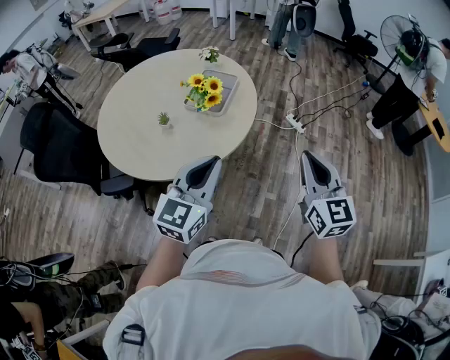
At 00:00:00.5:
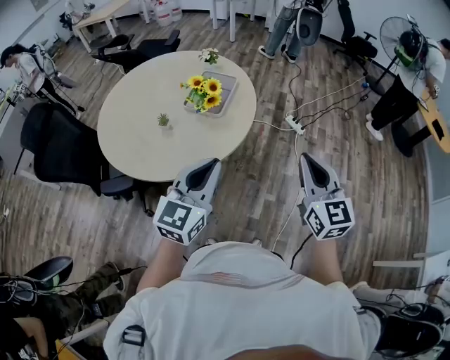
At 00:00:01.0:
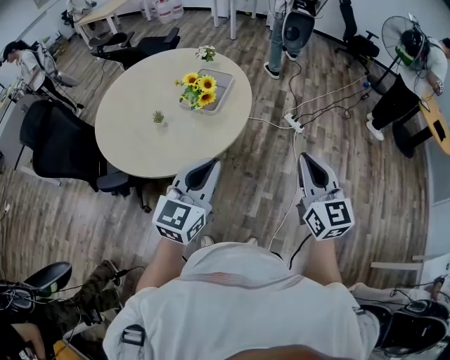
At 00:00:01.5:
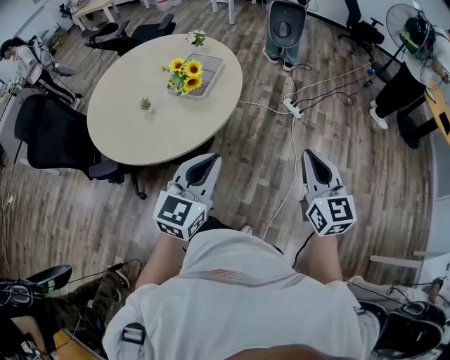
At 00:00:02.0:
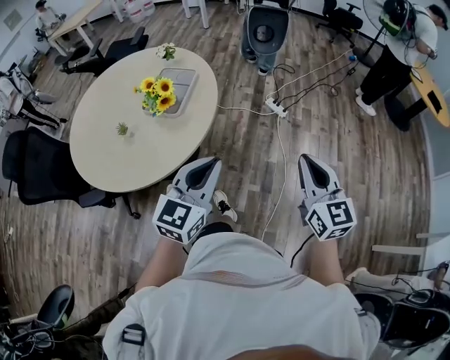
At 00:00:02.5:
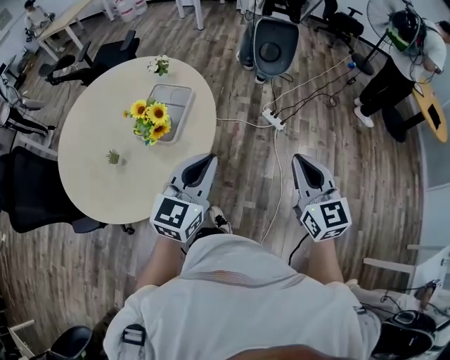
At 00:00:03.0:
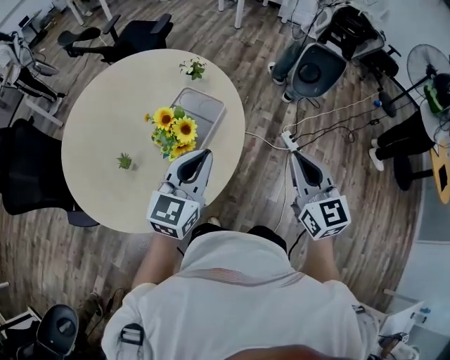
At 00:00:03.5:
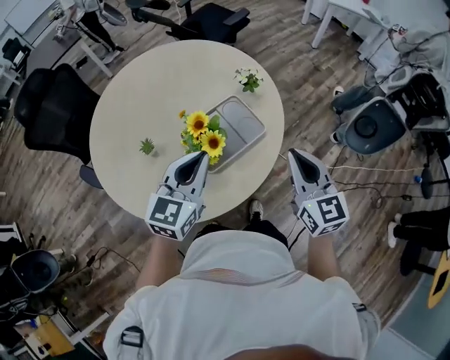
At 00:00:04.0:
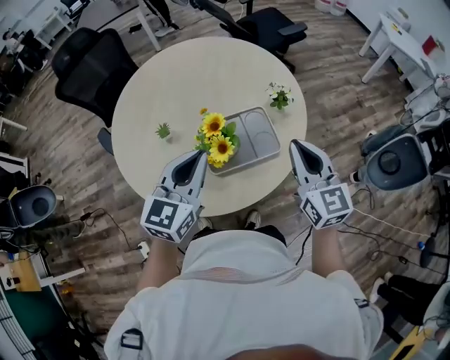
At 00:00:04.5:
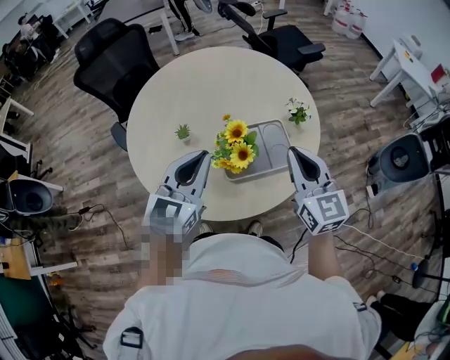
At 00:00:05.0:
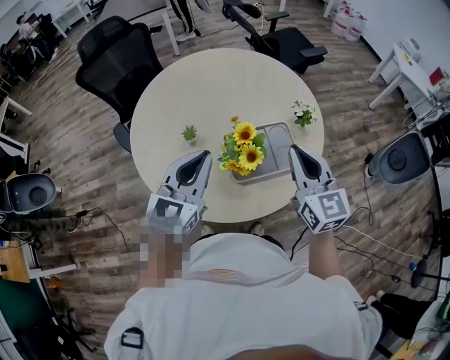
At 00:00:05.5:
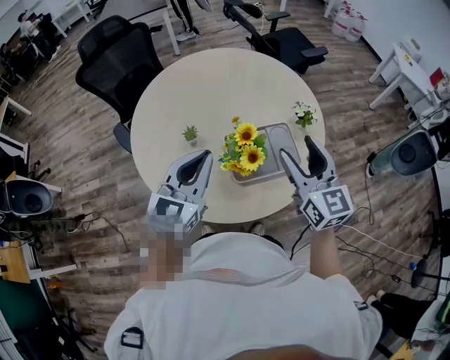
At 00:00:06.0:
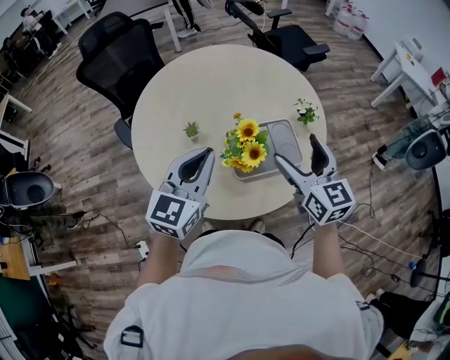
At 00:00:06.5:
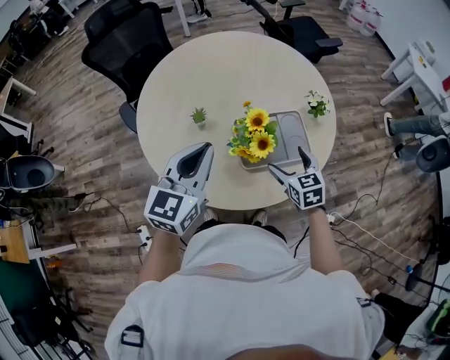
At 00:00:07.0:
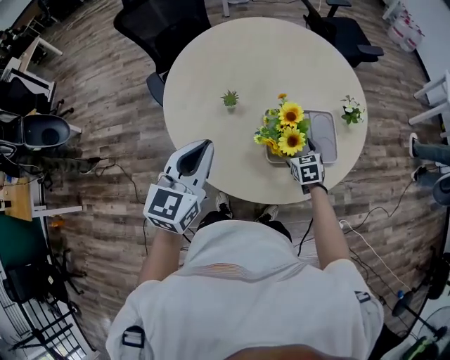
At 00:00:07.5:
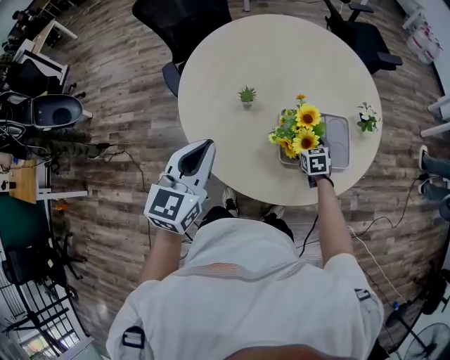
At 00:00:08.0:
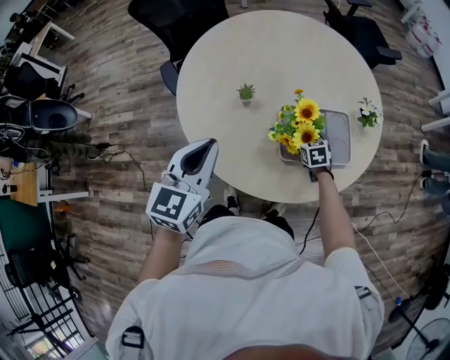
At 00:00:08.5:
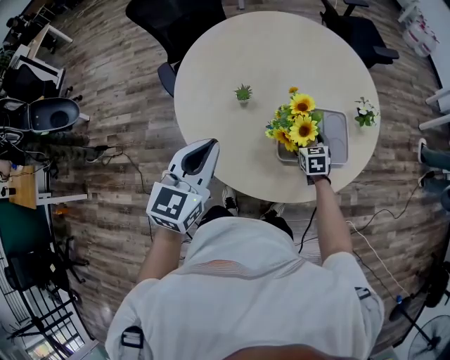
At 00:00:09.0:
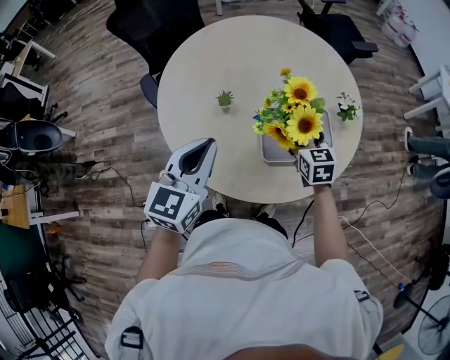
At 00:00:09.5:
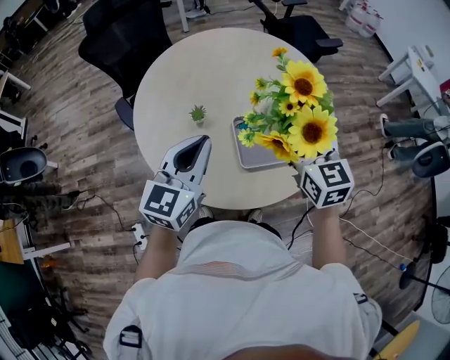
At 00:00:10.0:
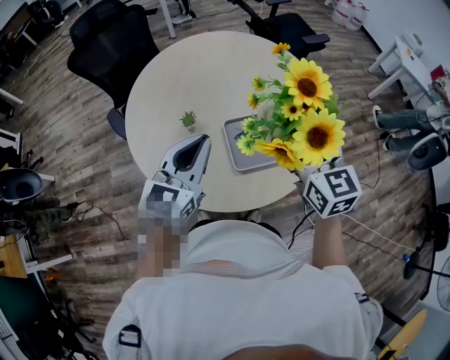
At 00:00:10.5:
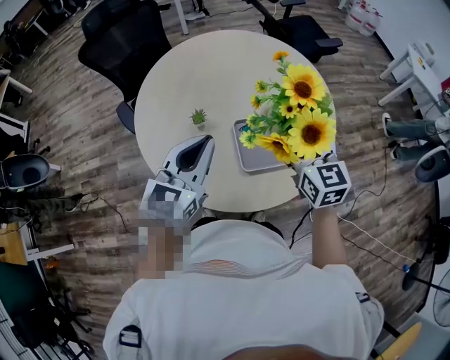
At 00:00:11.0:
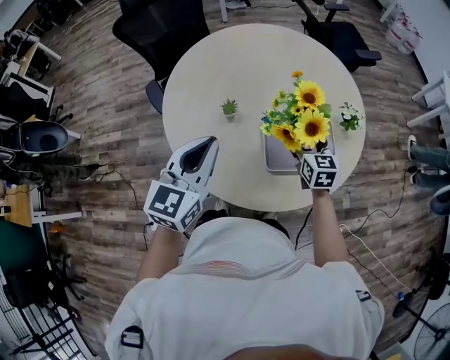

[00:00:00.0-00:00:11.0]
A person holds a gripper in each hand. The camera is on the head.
00:00:00.0 to 00:00:02.0: The left gripper moves to the right and forward, roughly 20 cm, while the right gripper is displaced to the right by roughly 20 cm.
00:00:02.0 to 00:00:03.5: The pair of grippers is taken some 50 cm. The left gripper rotates some 40 degrees. Meanwhile the right gripper turns by approximately 40 degrees.
00:00:03.5 to 00:00:05.5: The right gripper shifts approximately 15 cm forward and to the left, swivels approximately 20 degrees, and opens. The left gripper shifts about 10 cm to the left and upward, and changes its angle by roughly 20 degrees.
00:00:05.5 to 00:00:07.5: The right gripper travels downward by some 40 cm, angles its fingers downward, by roughly 50 degrees, and opens up. The left gripper heads to the left, covering roughly 10 cm, and swivels some 20 degrees.
00:00:07.5 to 00:00:09.0: The right gripper goes roughly 20 cm upward.
00:00:09.0 to 00:00:11.0: The right gripper reaches roughly 20 cm upward, then returns. The left gripper reaches roughly 10 cm to the right, then returns.

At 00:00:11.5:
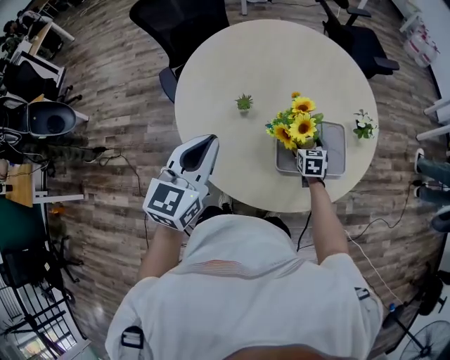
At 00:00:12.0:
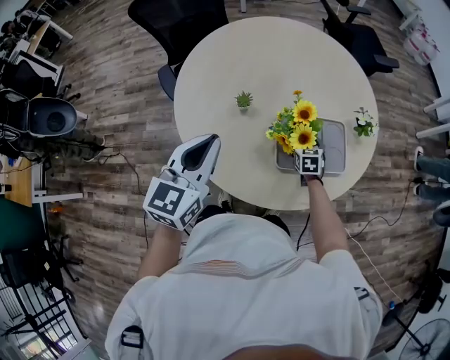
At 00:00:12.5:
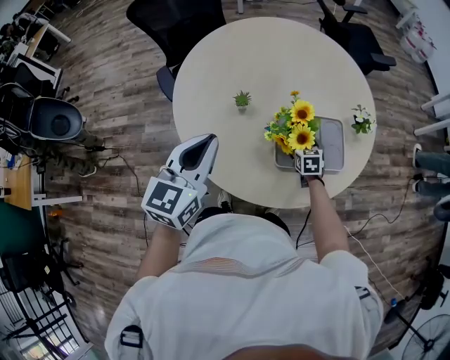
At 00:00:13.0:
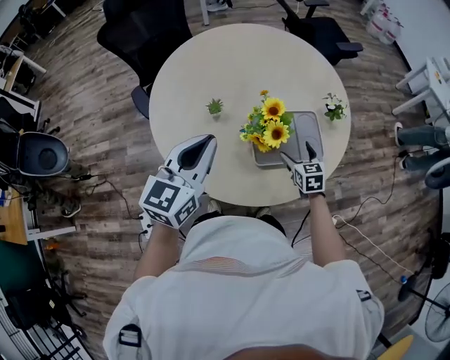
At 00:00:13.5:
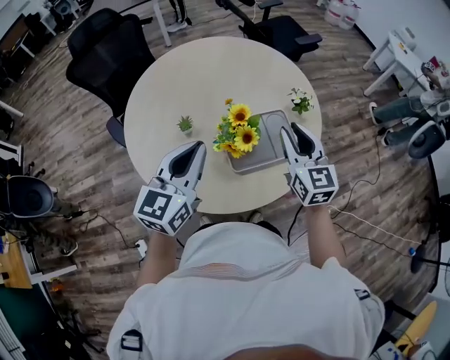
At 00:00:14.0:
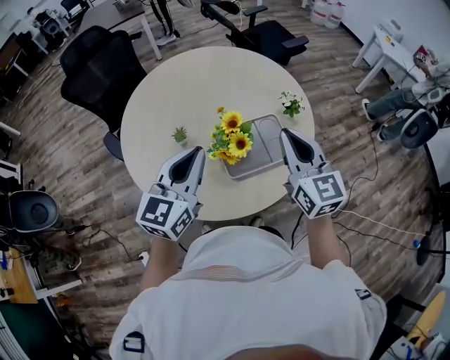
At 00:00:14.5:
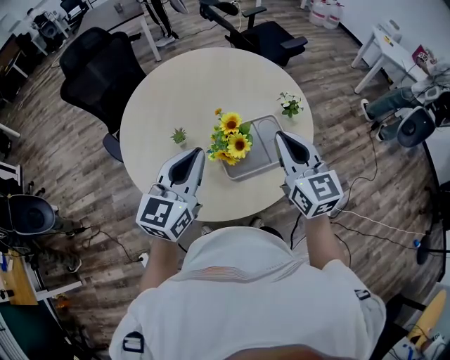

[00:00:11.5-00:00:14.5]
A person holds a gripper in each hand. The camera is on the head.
00:00:11.5 to 00:00:13.0: The right gripper shifts roughly 10 cm backward, upward and to the right, while the left gripper goes approximately 5 cm to the right.
00:00:13.0 to 00:00:14.5: The right gripper heads upward, covering approximately 30 cm, tips its fingers upward by some 30 degrees, and closes. Meanwhile the left gripper shifts some 5 cm to the right.

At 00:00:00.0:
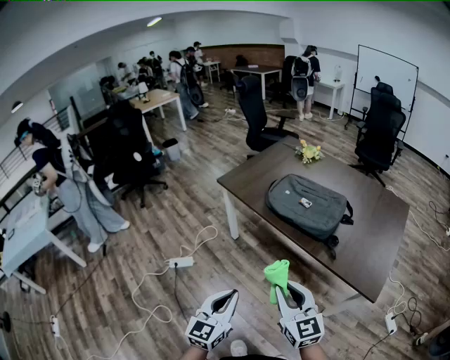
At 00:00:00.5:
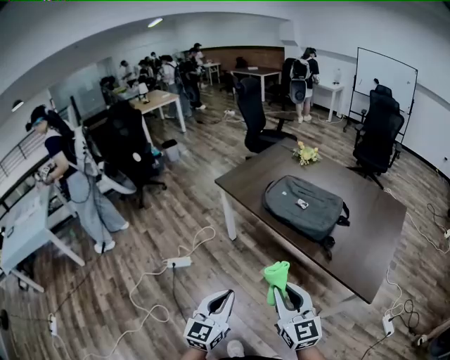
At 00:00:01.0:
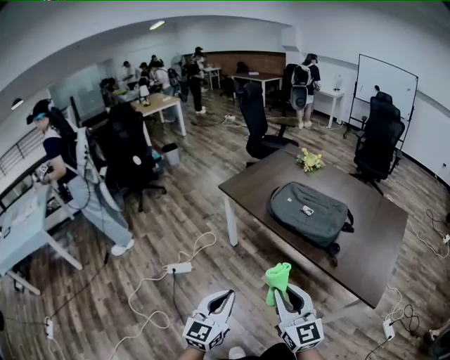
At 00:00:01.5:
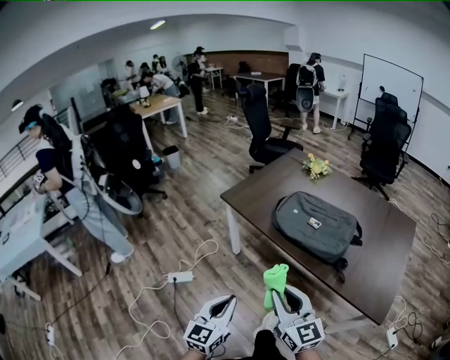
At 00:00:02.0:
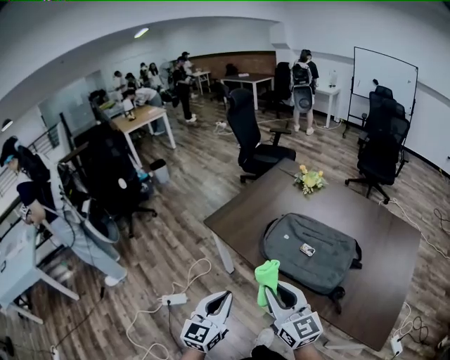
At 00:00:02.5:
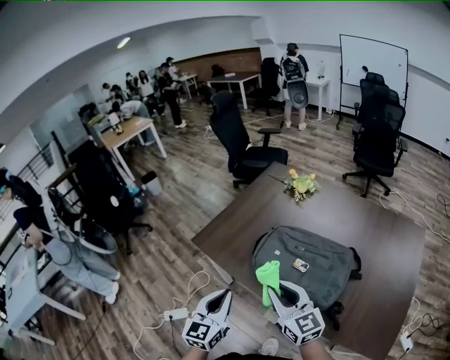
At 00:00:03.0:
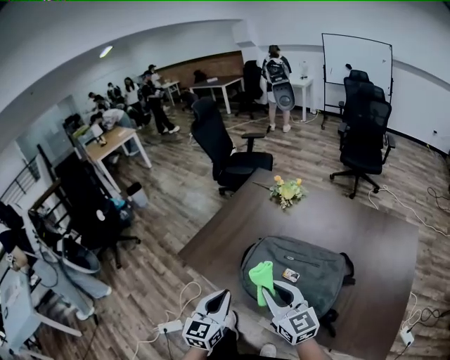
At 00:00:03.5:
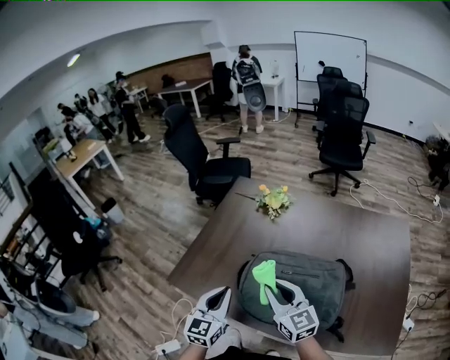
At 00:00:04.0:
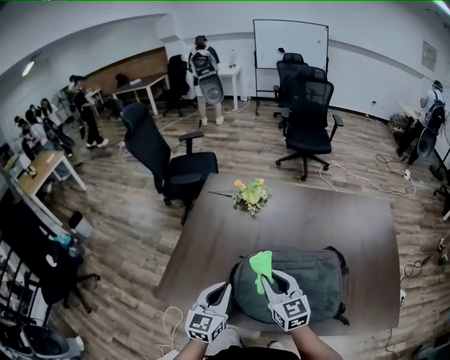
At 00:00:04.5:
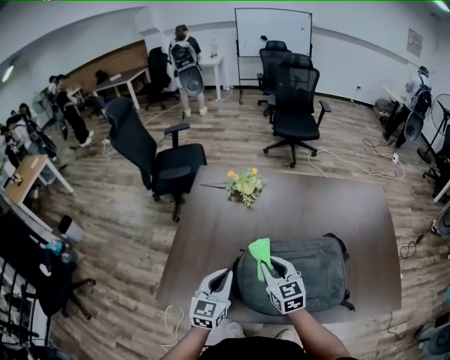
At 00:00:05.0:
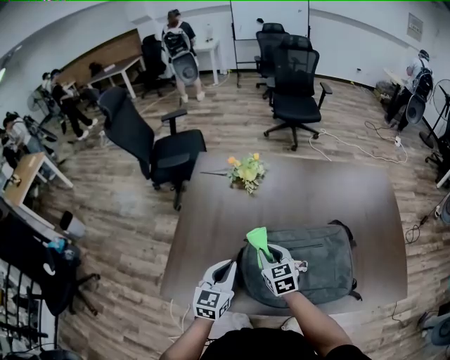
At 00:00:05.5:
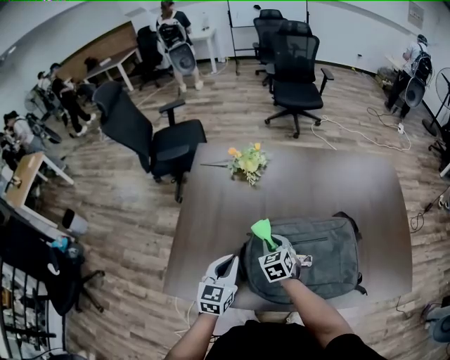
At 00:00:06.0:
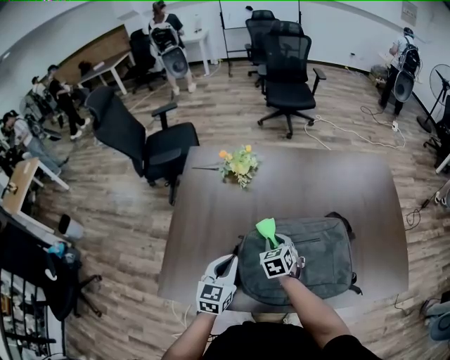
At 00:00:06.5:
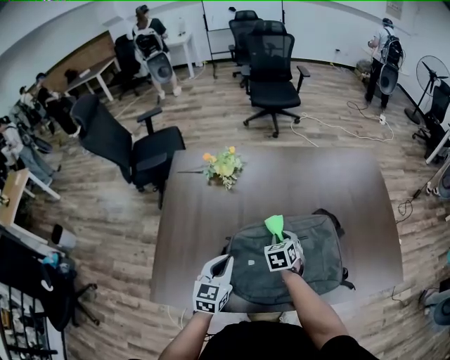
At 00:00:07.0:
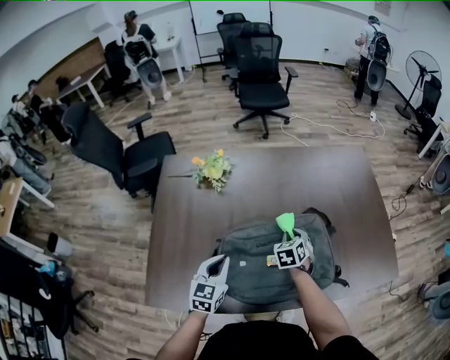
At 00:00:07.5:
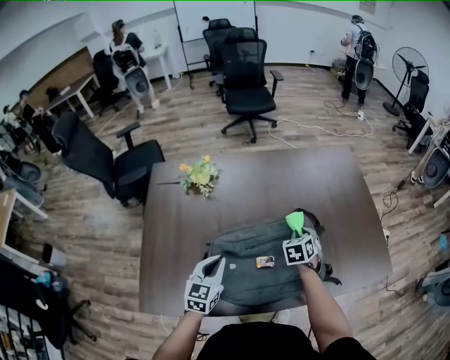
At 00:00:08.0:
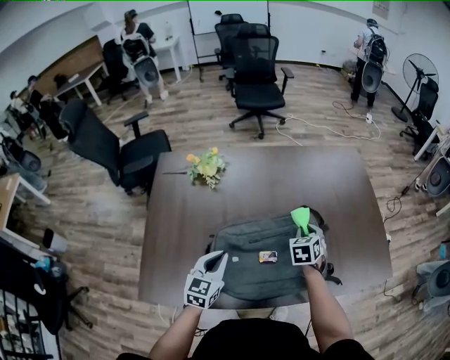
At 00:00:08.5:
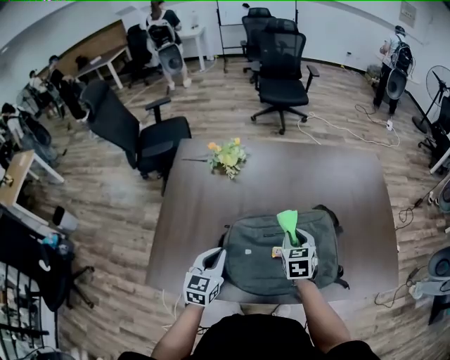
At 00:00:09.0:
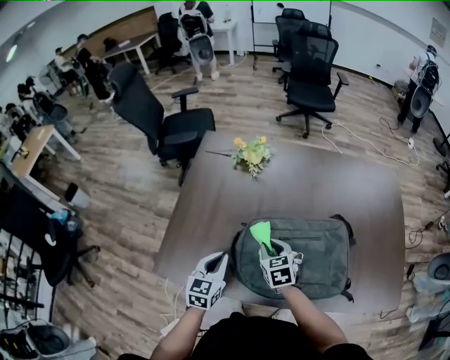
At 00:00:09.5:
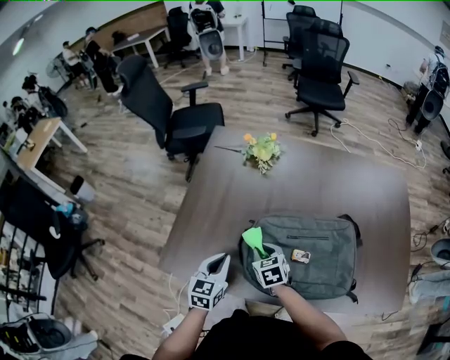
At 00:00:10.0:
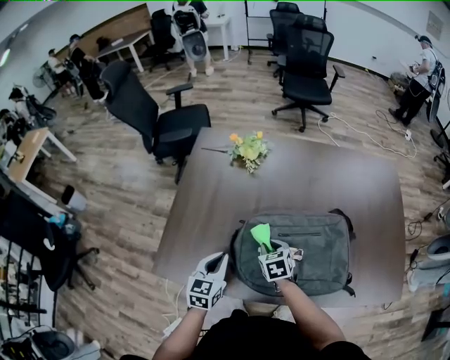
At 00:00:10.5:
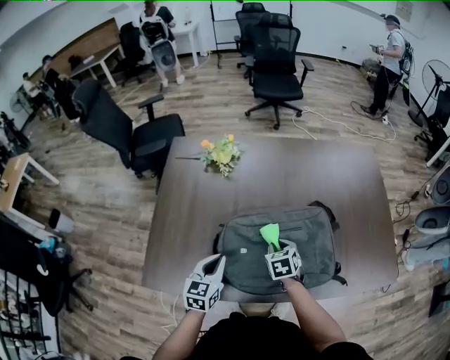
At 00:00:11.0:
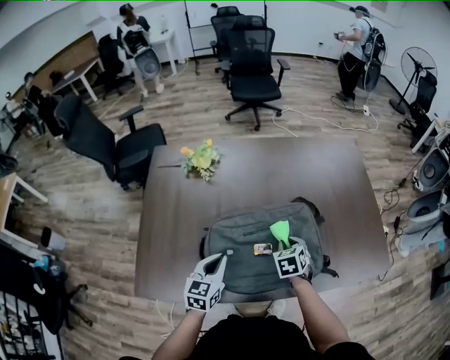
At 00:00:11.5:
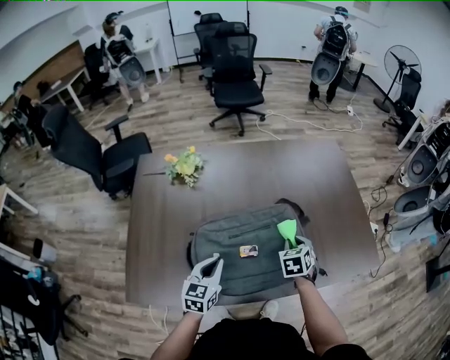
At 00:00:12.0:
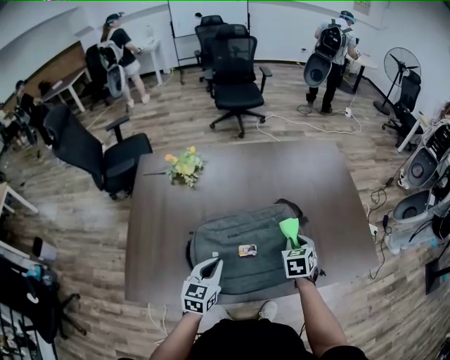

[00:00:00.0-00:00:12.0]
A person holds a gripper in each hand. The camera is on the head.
00:00:00.0 to 00:00:02.0: Both grippers travel together forward, some 25 cm.
00:00:02.0 to 00:00:04.0: The left gripper shifts by some 35 cm, and changes its angle by approximately 30 degrees. Meanwhile the right gripper changes place by about 30 cm, and swivels approximately 30 degrees.
00:00:04.0 to 00:00:06.0: The right gripper moves downward and forward, some 20 cm, and angles its fingers downward, by approximately 30 degrees. The left gripper shifts roughly 10 cm forward and downward.
00:00:06.0 to 00:00:08.0: The left gripper heads to the right, covering roughly 5 cm; the right gripper travels to the right by about 25 cm, and changes its angle by some 20 degrees.
00:00:08.0 to 00:00:10.0: The left gripper moves roughly 10 cm. The right gripper changes place by some 25 cm, and rotates approximately 30 degrees.
00:00:10.0 to 00:00:12.0: The right gripper changes place by about 30 cm, and swivels some 30 degrees; the left gripper shifts by about 15 cm.
